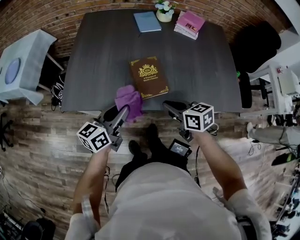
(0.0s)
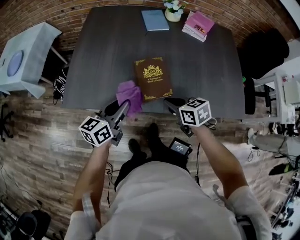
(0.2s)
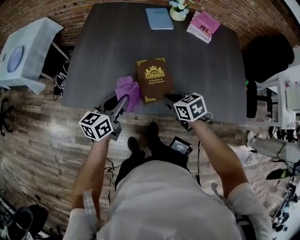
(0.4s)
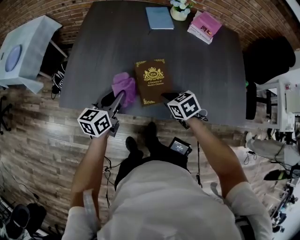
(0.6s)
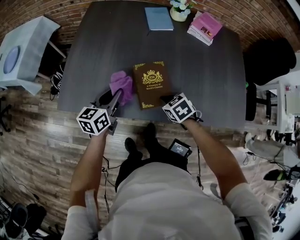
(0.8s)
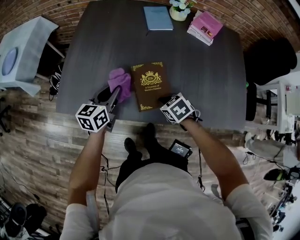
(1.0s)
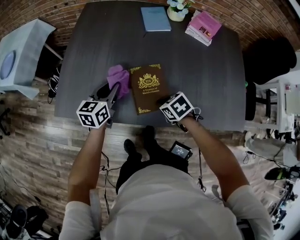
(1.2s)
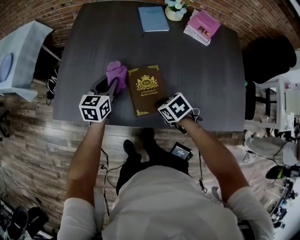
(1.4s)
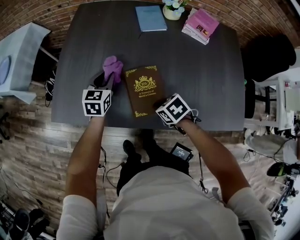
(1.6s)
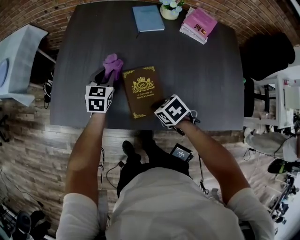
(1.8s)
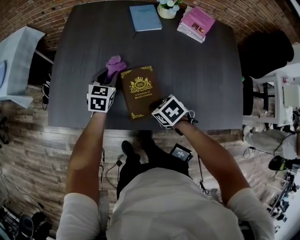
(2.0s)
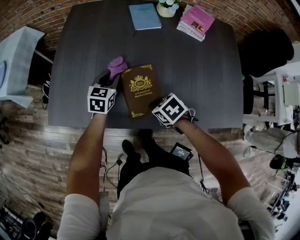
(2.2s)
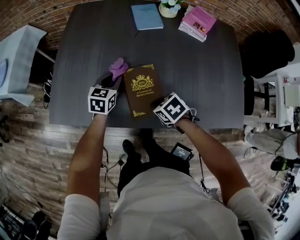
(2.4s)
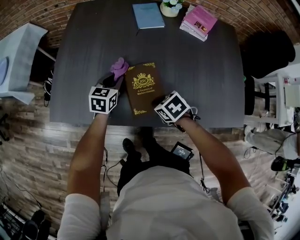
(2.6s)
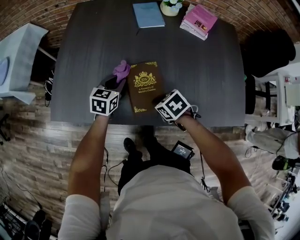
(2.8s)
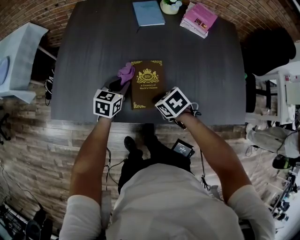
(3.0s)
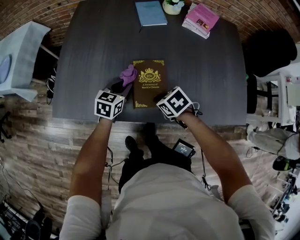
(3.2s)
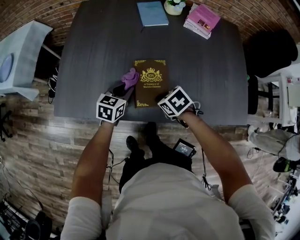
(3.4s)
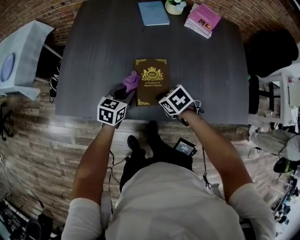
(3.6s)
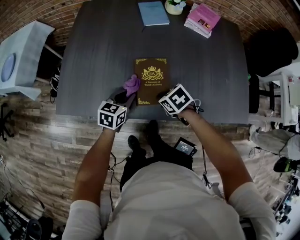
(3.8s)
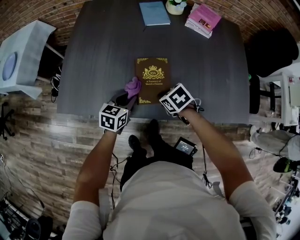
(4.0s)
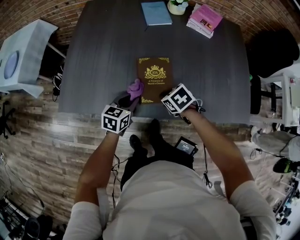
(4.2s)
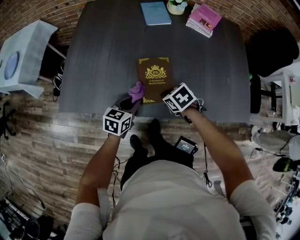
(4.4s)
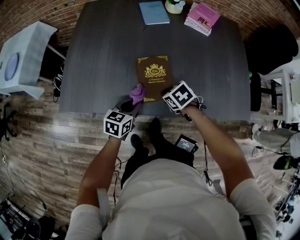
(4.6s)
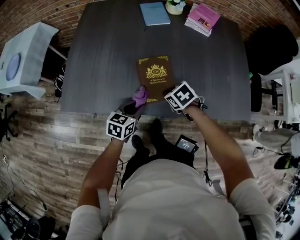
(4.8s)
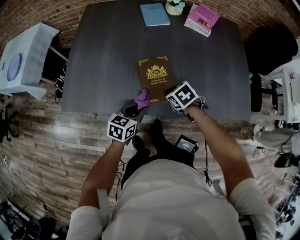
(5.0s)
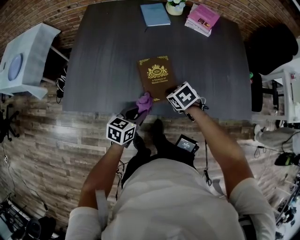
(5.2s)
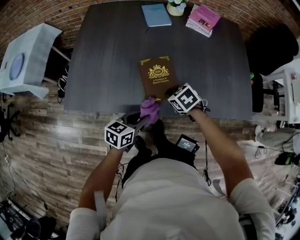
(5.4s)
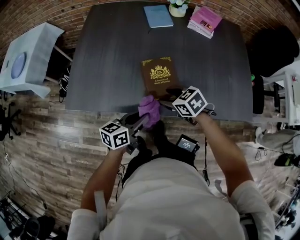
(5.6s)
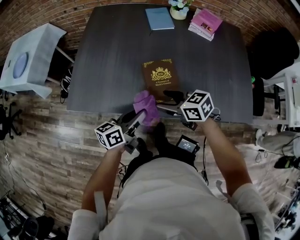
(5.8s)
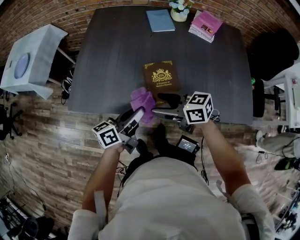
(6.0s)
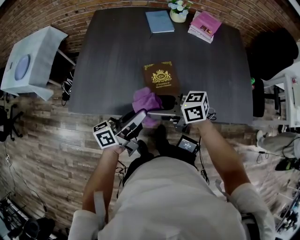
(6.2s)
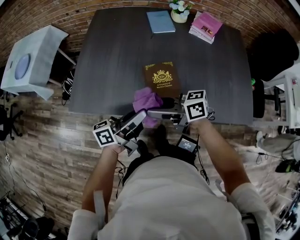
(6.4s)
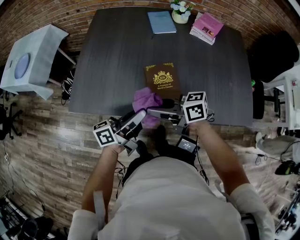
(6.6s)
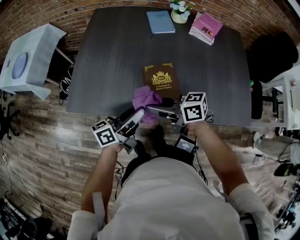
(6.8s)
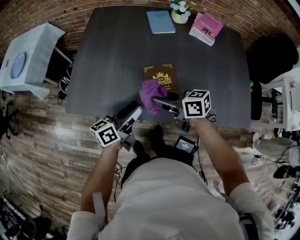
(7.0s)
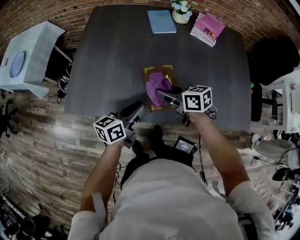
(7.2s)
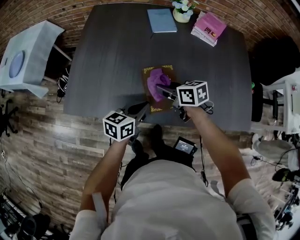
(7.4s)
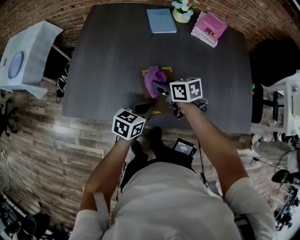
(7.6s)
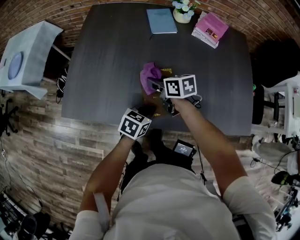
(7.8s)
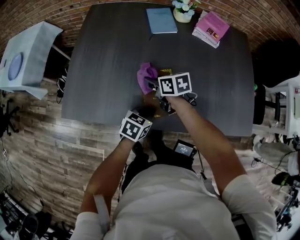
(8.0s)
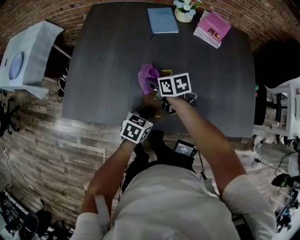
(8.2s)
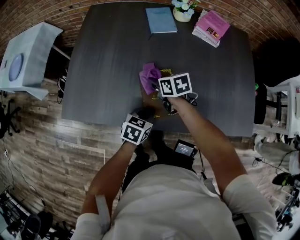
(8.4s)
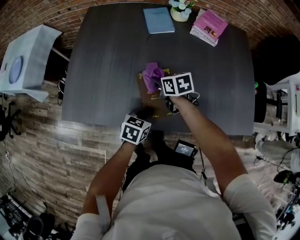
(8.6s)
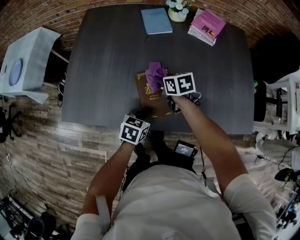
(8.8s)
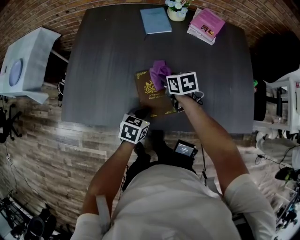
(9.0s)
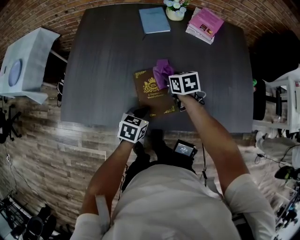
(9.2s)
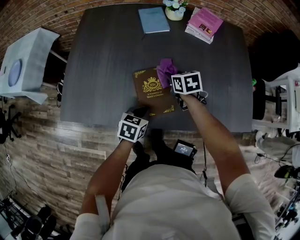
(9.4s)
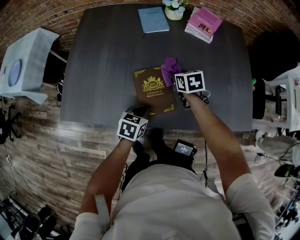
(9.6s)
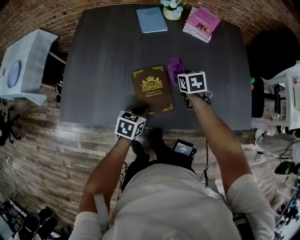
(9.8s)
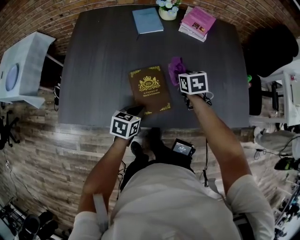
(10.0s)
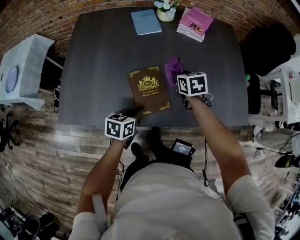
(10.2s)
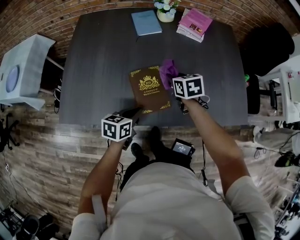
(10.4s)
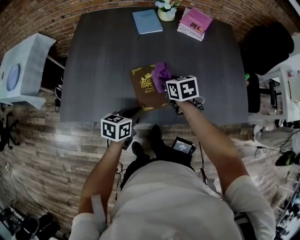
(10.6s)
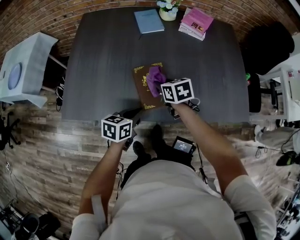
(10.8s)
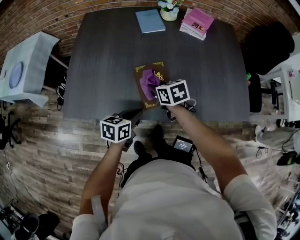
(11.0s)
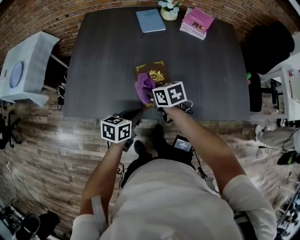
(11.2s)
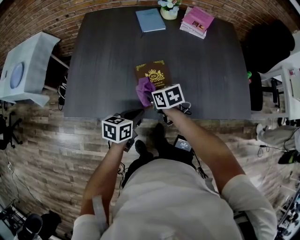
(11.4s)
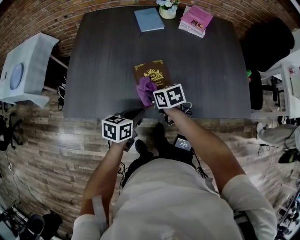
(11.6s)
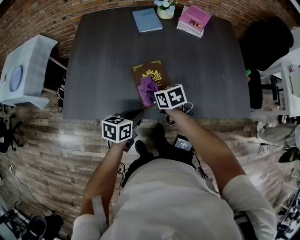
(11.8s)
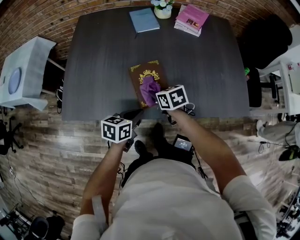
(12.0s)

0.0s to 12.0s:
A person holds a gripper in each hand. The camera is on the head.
0.0s to 1.6s: The right gripper heads downward, covering roughly 10 cm, and points its fingers about 30 degrees further downward; the left gripper changes place by approximately 25 cm, and turns by roughly 40 degrees.
1.6s to 3.0s: The left gripper moves backward, some 10 cm.
3.0s to 4.4s: The left gripper travels backward by about 10 cm.
4.4s to 6.0s: The left gripper is displaced upward by approximately 10 cm, and points its fingers about 30 degrees further upward. The right gripper travels upward and to the left by roughly 15 cm, angles its fingers upward, by approximately 50 degrees, and opens its fingers.
6.0s to 7.6s: The left gripper ends up approximately 10 cm from where it was, angles its fingers downward, by approximately 30 degrees, and opens and closes again. The right gripper moves roughly 15 cm, turns by about 30 degrees, and closes up.
7.6s to 9.0s: The right gripper goes some 10 cm to the right and forward.
9.0s to 10.4s: The right gripper heads to the right, covering some 5 cm.
10.4s to 12.0s: The right gripper goes approximately 10 cm backward and to the left.

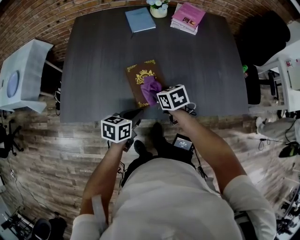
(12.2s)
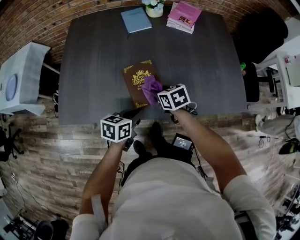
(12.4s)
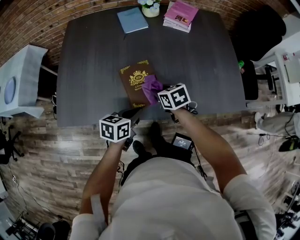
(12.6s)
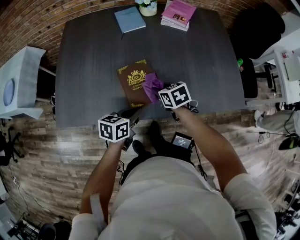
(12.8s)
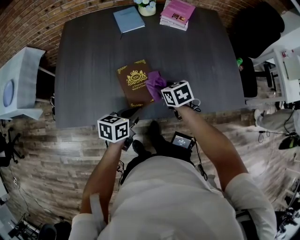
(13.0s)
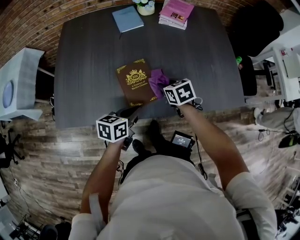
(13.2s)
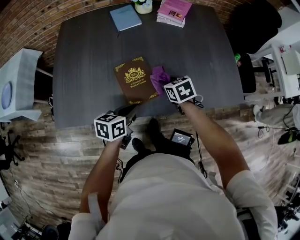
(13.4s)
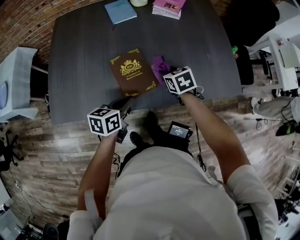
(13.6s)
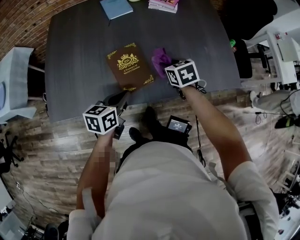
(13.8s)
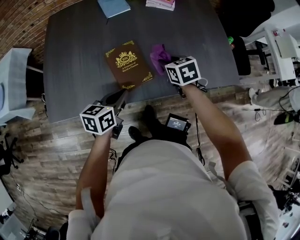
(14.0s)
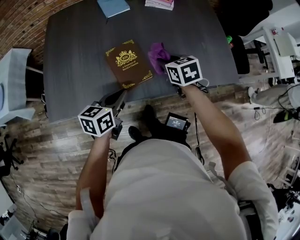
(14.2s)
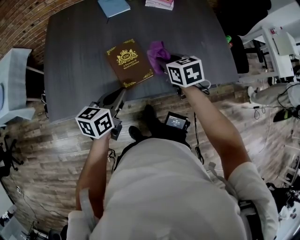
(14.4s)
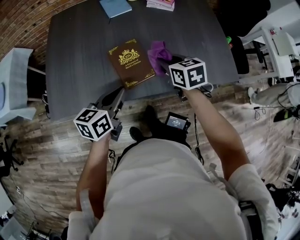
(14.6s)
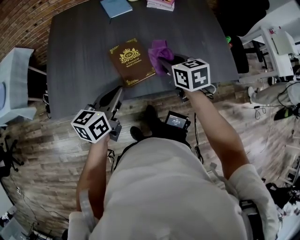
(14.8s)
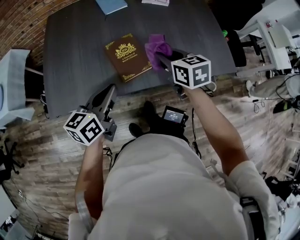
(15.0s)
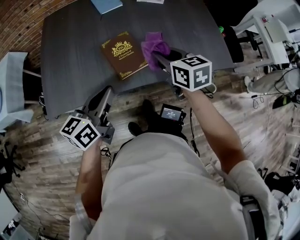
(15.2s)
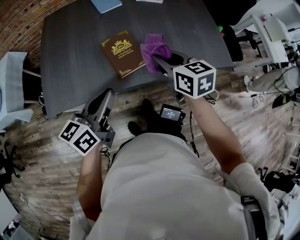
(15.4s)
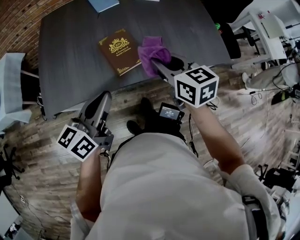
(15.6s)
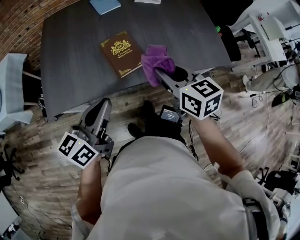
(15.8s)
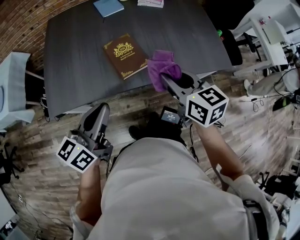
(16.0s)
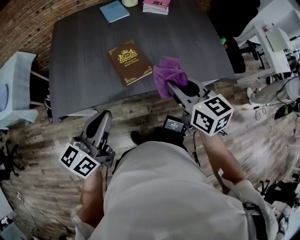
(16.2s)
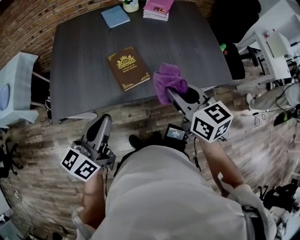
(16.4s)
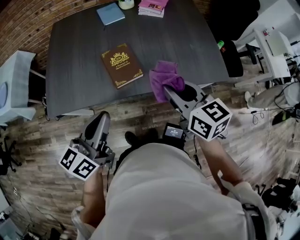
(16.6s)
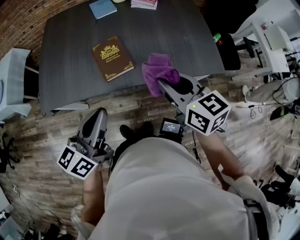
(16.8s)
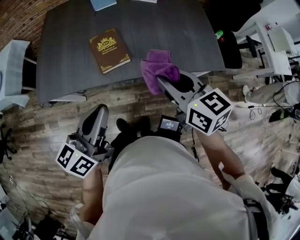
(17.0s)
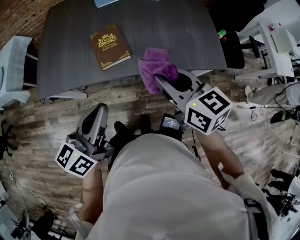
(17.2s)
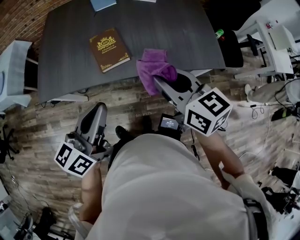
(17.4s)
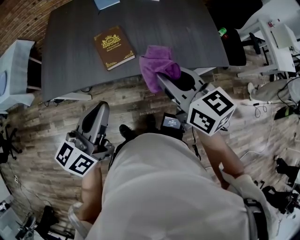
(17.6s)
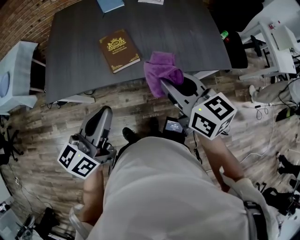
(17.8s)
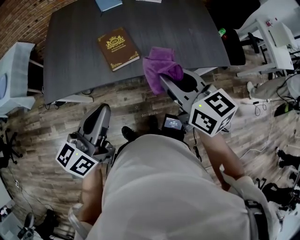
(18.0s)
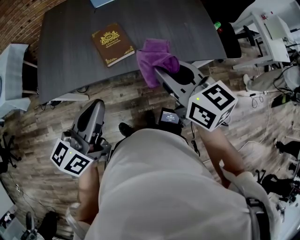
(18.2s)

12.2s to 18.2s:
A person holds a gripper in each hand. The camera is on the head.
12.2s to 13.8s: The right gripper heads to the right, covering roughly 10 cm.
13.8s to 15.2s: Both grippers move upward and backward, about 15 cm. The right gripper changes its angle by some 20 degrees.
15.2s to 16.6s: The right gripper is displaced backward, upward and to the right by about 15 cm, while the left gripper moves backward and upward, about 10 cm.

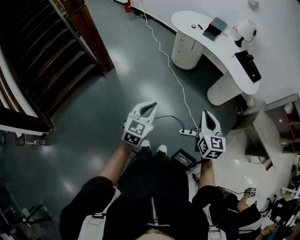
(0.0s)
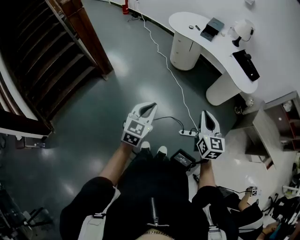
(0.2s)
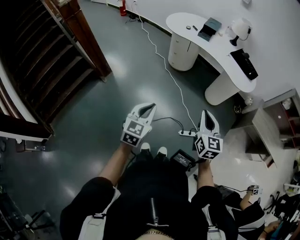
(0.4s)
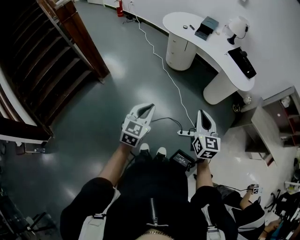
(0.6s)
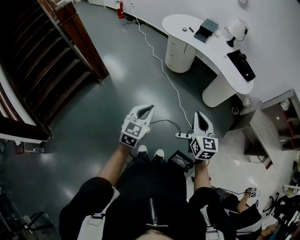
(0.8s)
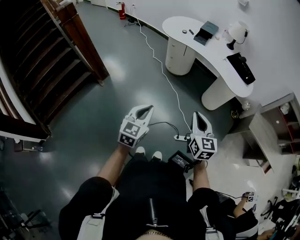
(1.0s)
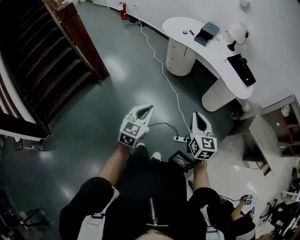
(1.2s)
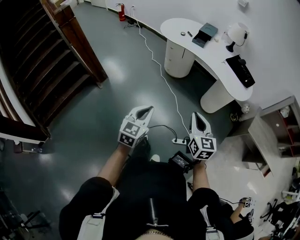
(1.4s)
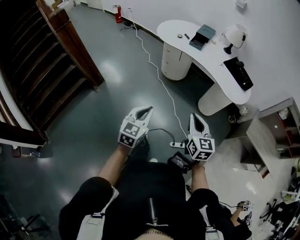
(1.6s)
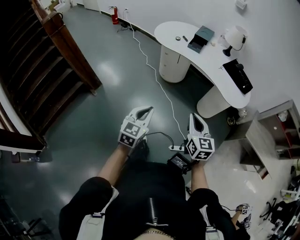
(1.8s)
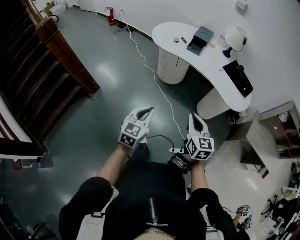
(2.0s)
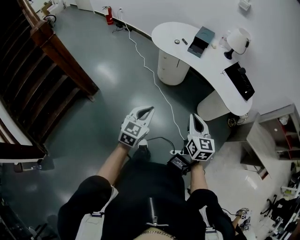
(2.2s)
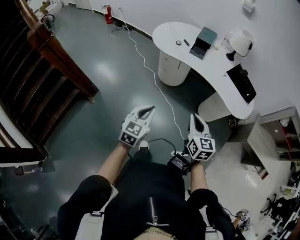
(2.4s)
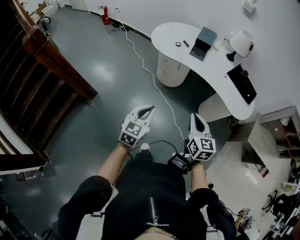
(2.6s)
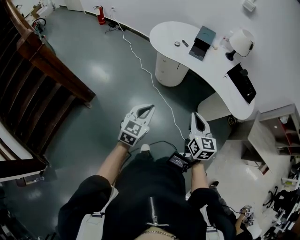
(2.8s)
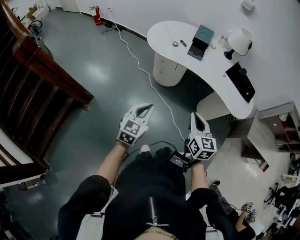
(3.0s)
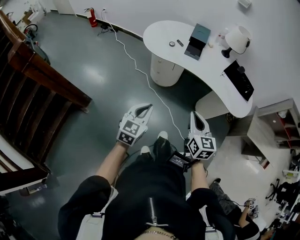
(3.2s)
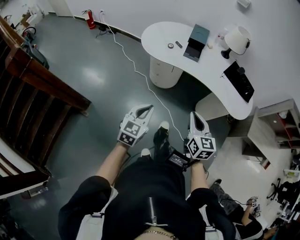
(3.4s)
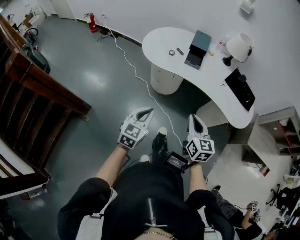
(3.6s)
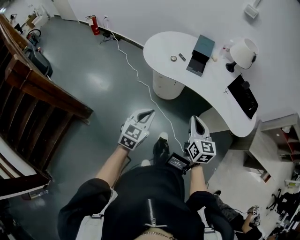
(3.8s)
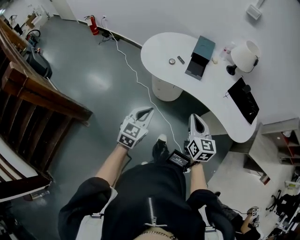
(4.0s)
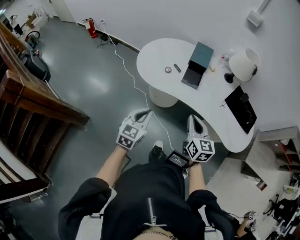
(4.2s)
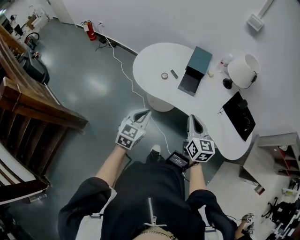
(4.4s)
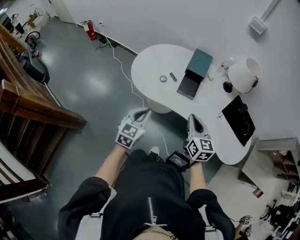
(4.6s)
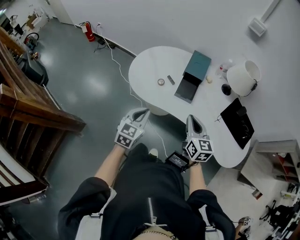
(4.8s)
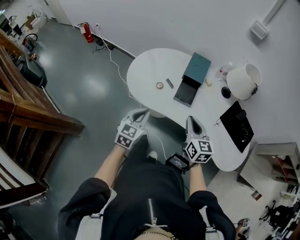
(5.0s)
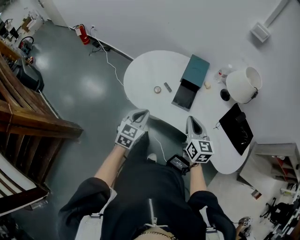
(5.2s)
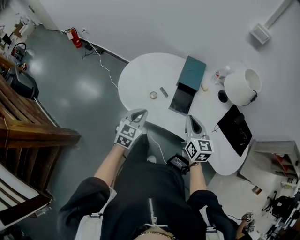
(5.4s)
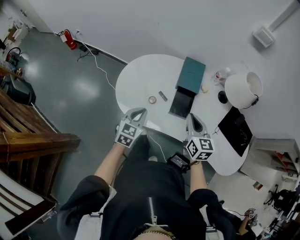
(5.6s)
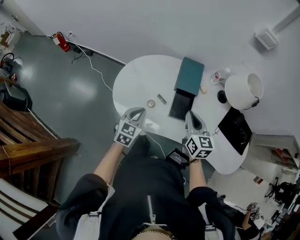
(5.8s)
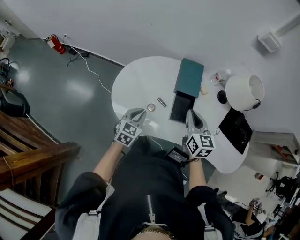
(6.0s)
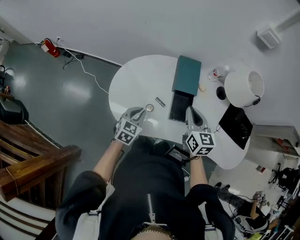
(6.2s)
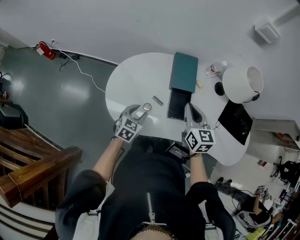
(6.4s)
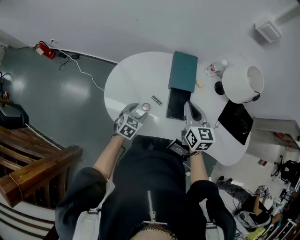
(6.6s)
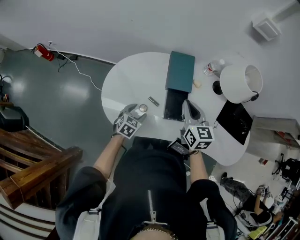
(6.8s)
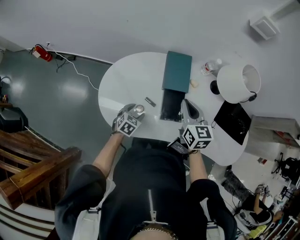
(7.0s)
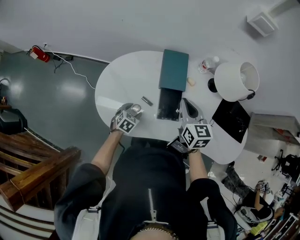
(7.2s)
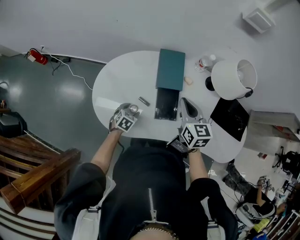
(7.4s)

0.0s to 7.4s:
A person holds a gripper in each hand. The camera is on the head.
0.0s to 1.4s: The right gripper is displaced forward by about 5 cm, while the left gripper is displaced forward and to the right by approximately 10 cm.
1.4s to 3.0s: The right gripper shifts approximately 30 cm forward and to the left. Meanwhile the left gripper is displaced forward by roughly 30 cm.
3.0s to 4.4s: Both grippers travel together forward, about 30 cm.
4.4s to 6.0s: Both grippers move forward, roughly 30 cm.
6.0s to 7.4s: The left gripper shifts roughly 15 cm downward, swivels approximately 30 degrees, and opens up; the right gripper goes roughly 5 cm forward.
